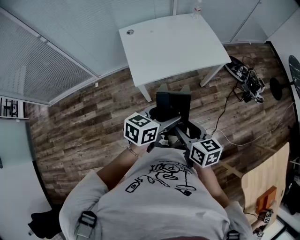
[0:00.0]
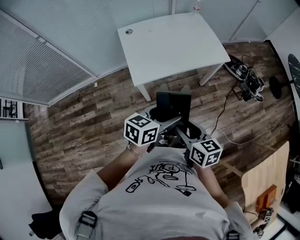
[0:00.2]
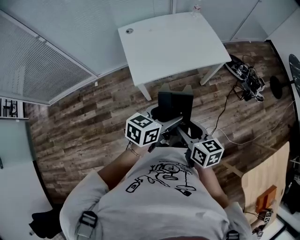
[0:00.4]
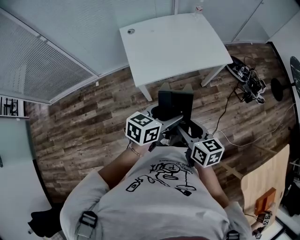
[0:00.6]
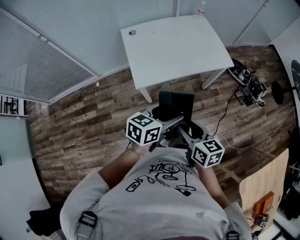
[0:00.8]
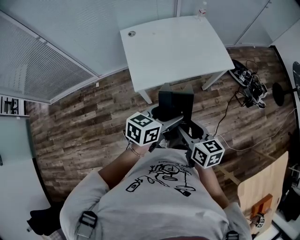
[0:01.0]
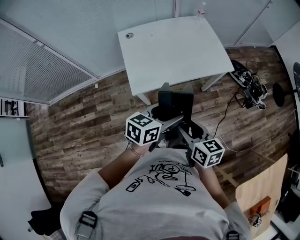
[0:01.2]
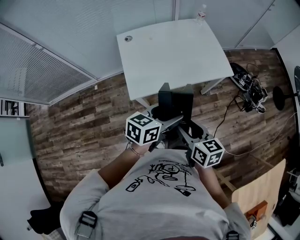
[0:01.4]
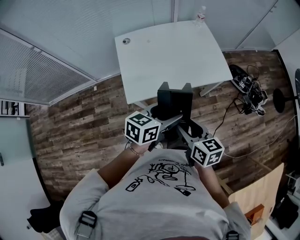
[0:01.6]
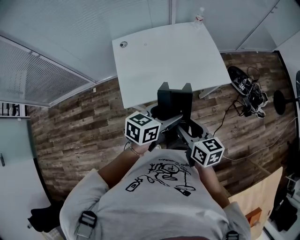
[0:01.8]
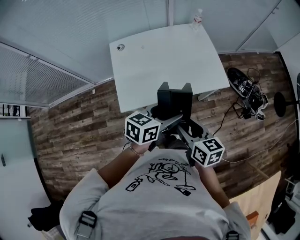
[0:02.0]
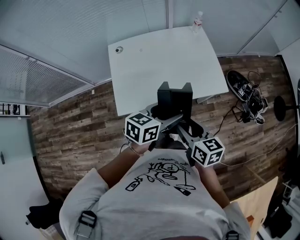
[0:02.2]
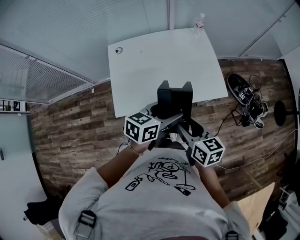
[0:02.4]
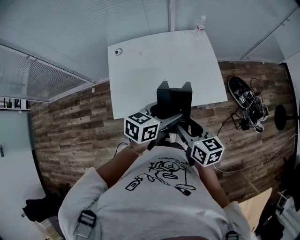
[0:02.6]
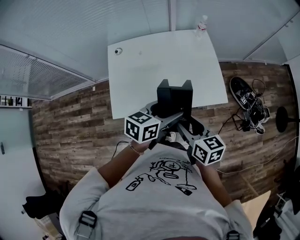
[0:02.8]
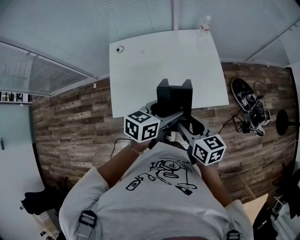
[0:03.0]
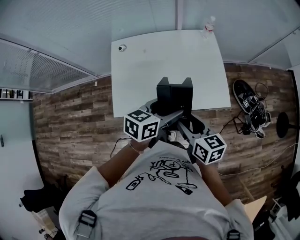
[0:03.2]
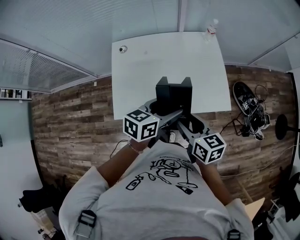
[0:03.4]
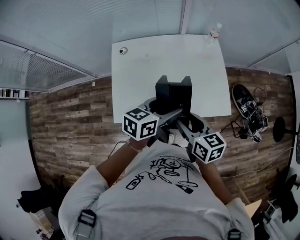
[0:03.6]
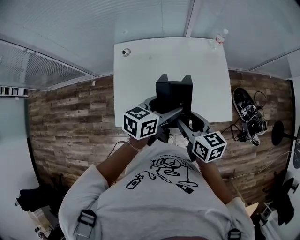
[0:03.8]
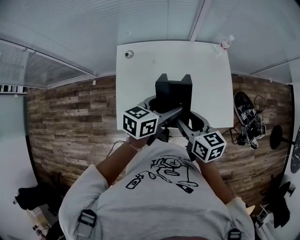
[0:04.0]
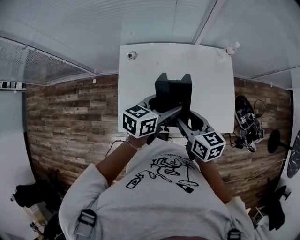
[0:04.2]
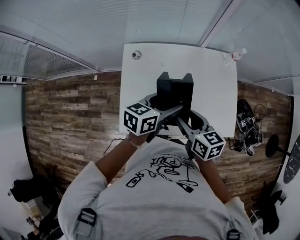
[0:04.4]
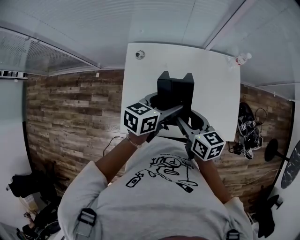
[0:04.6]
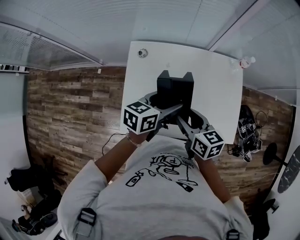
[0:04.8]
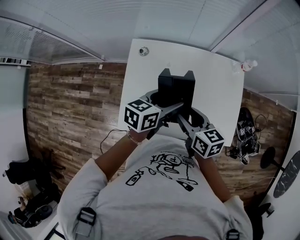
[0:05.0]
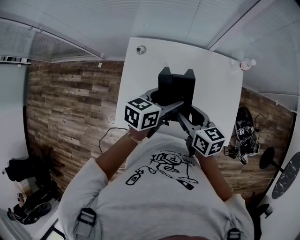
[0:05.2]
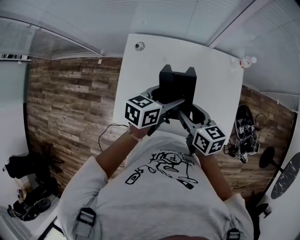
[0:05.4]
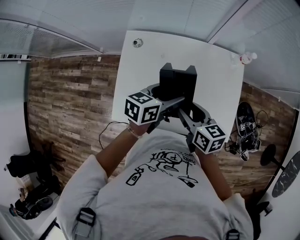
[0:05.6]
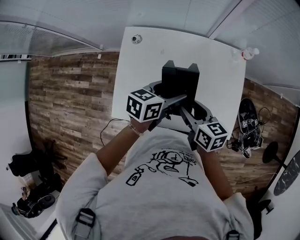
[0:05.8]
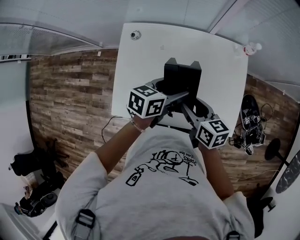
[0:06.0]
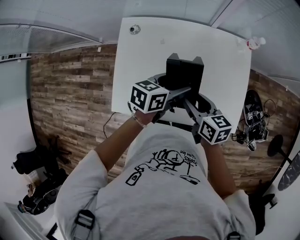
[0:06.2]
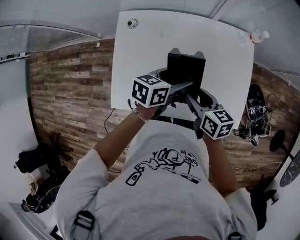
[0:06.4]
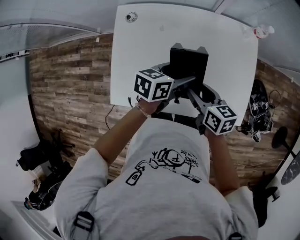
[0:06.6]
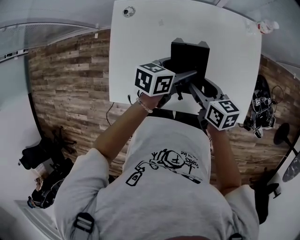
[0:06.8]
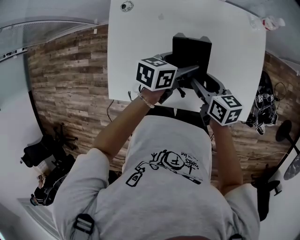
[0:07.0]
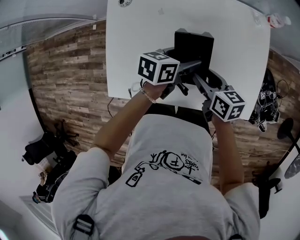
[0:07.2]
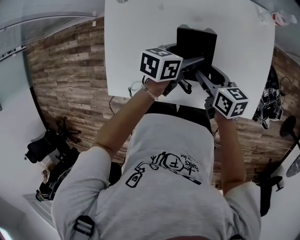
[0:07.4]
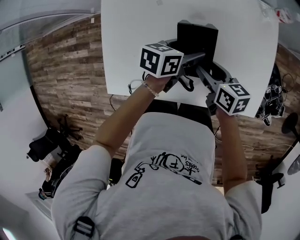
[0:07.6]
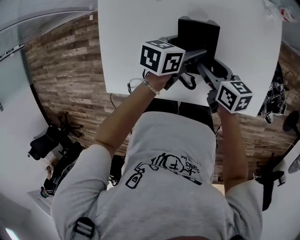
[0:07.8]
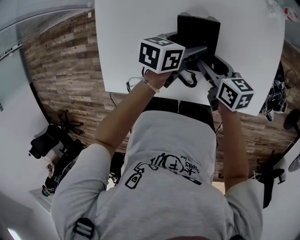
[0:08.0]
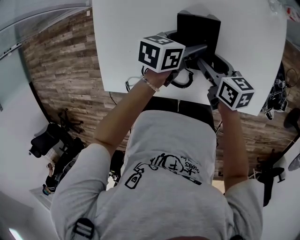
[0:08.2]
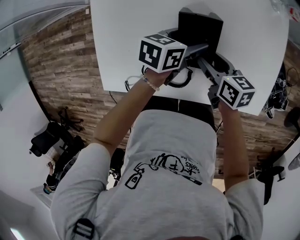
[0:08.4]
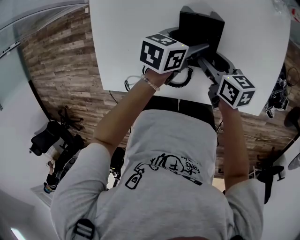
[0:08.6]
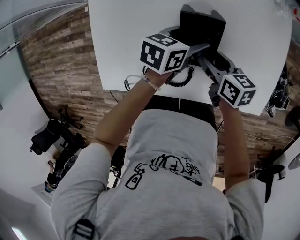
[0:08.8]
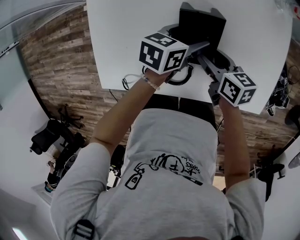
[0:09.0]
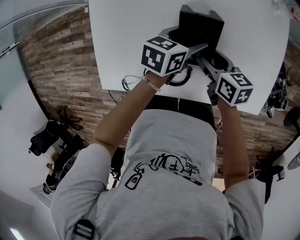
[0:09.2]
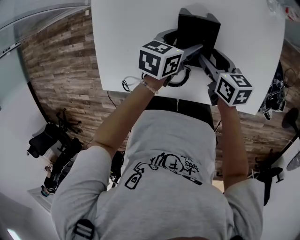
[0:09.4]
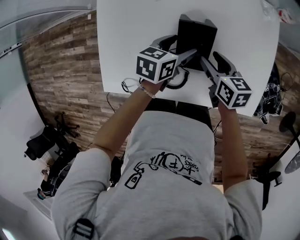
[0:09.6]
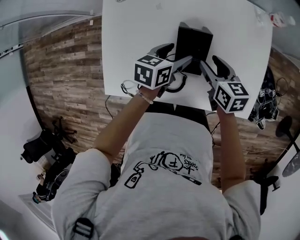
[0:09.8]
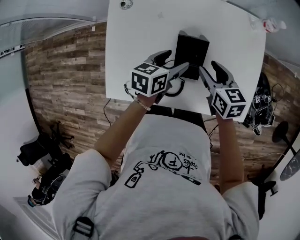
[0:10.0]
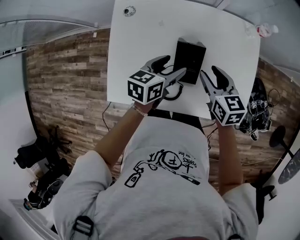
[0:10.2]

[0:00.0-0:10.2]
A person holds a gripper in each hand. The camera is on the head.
0.0 to 1.4 s: Both grippers move forward, approximately 15 cm.
1.4 to 3.0 s: Both grippers travel together forward and to the right, about 25 cm.
3.0 to 4.4 s: Both grippers move forward and to the left, some 25 cm.
4.4 to 5.8 s: The grippers both shift to the right by about 5 cm.
5.8 to 7.2 s: Both grippers move downward, about 15 cm.
7.2 to 8.8 s: Both grippers travel together downward, some 5 cm.
8.8 to 10.2 s: The left gripper goes about 15 cm upward and to the left. The right gripper is displaced upward by roughly 15 cm, and swivels about 30 degrees.

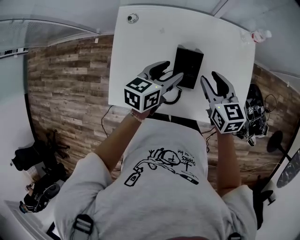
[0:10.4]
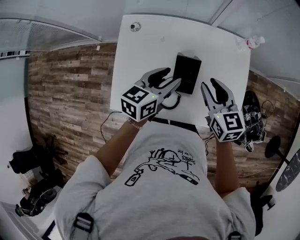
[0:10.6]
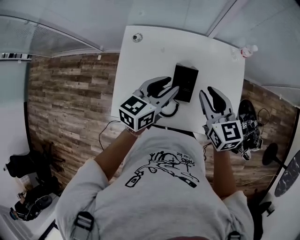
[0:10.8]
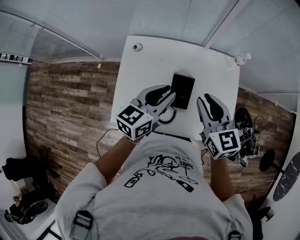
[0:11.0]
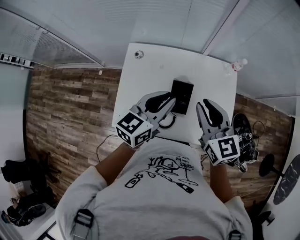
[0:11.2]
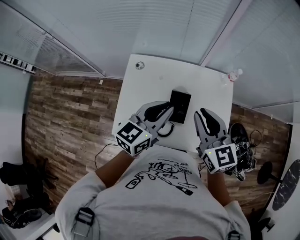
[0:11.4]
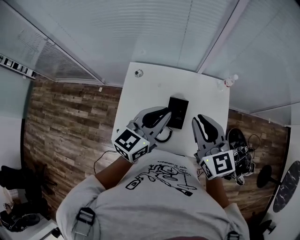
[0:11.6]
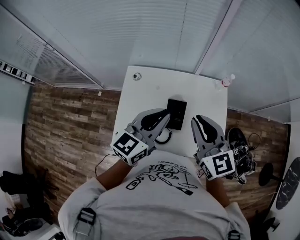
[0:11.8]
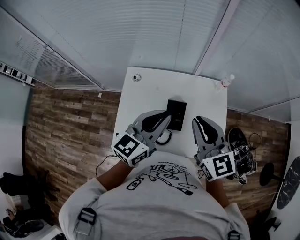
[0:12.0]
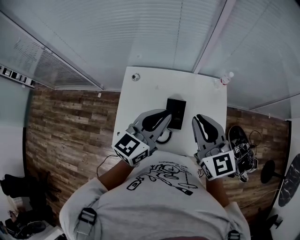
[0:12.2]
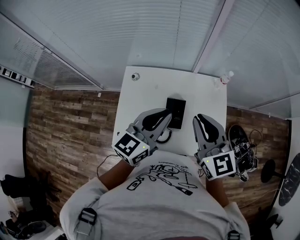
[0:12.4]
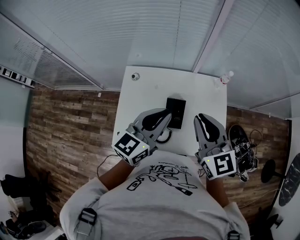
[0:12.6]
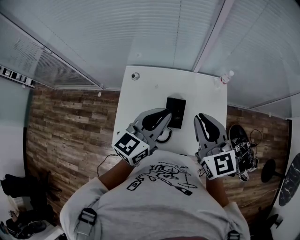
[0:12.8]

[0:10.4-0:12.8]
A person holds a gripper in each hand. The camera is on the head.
10.4 to 11.6 s: Both grippers travel together upward, roughly 25 cm. The right gripper swivels roughly 30 degrees, and closes its fingers; the left gripper rotates roughly 30 degrees, and closes up.
11.6 to 12.8 s: There are only small adjustments of the grippers.

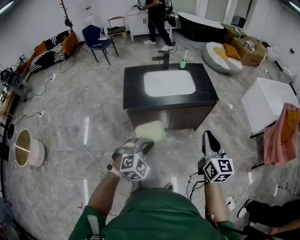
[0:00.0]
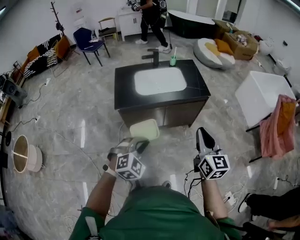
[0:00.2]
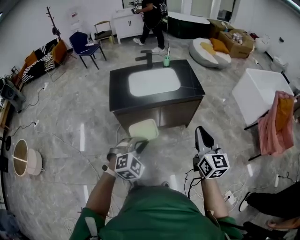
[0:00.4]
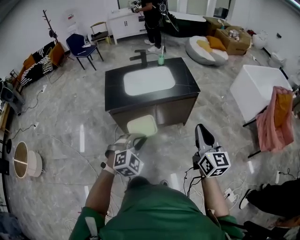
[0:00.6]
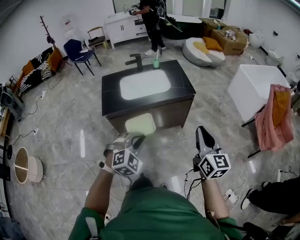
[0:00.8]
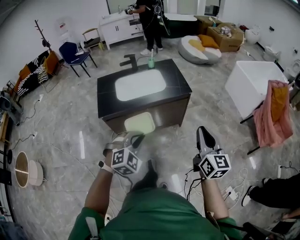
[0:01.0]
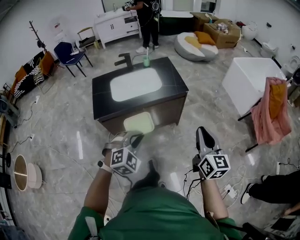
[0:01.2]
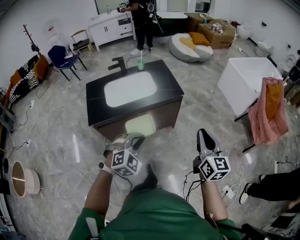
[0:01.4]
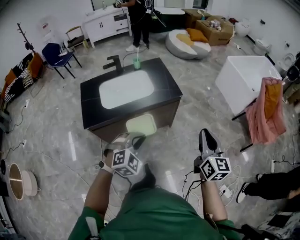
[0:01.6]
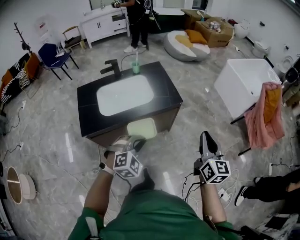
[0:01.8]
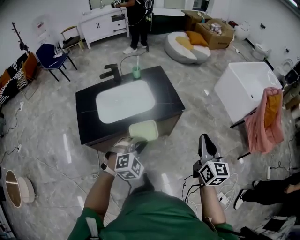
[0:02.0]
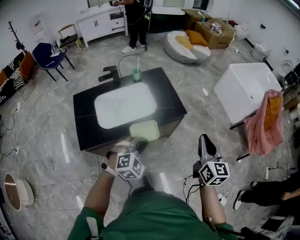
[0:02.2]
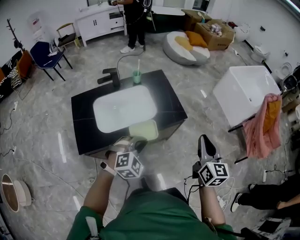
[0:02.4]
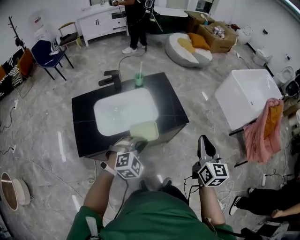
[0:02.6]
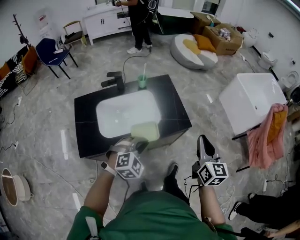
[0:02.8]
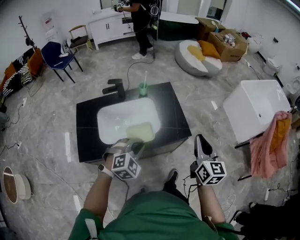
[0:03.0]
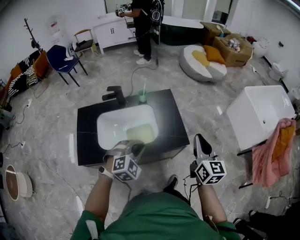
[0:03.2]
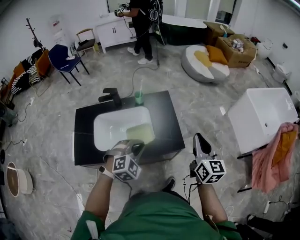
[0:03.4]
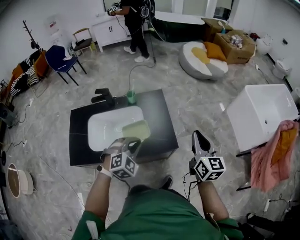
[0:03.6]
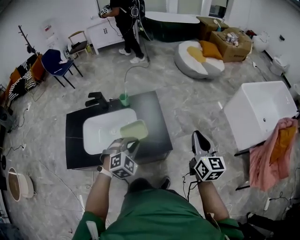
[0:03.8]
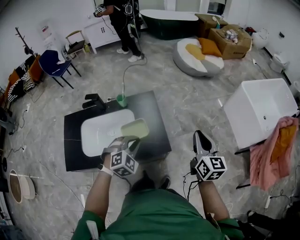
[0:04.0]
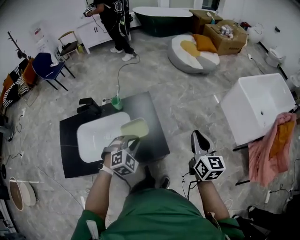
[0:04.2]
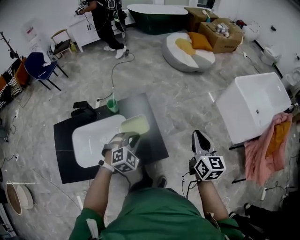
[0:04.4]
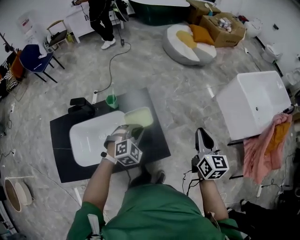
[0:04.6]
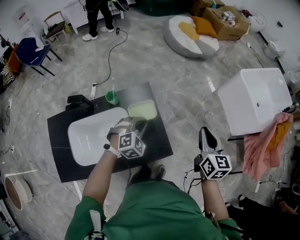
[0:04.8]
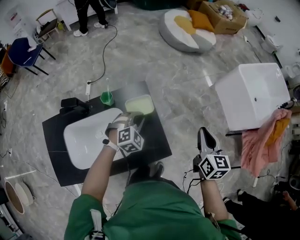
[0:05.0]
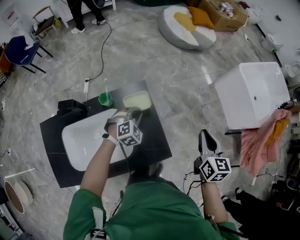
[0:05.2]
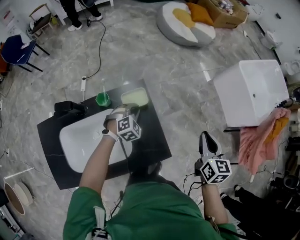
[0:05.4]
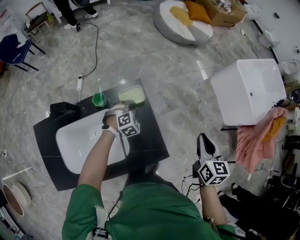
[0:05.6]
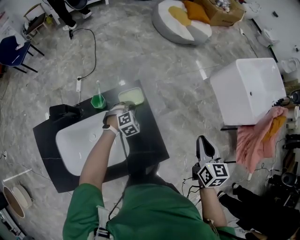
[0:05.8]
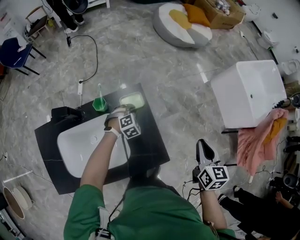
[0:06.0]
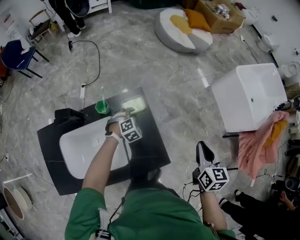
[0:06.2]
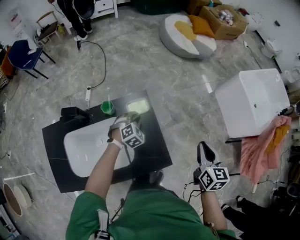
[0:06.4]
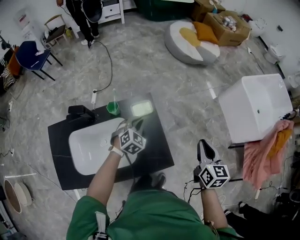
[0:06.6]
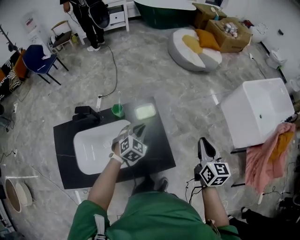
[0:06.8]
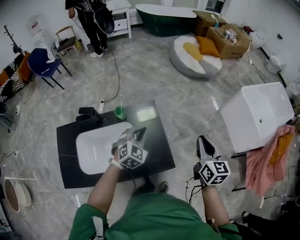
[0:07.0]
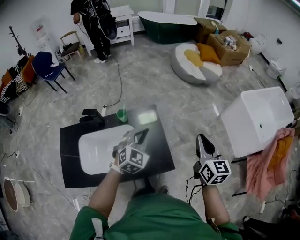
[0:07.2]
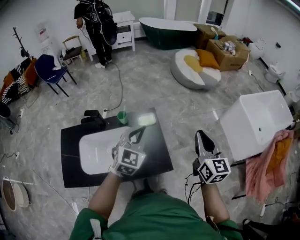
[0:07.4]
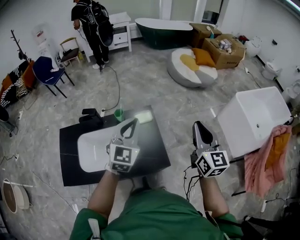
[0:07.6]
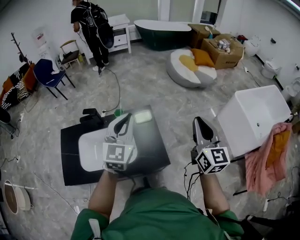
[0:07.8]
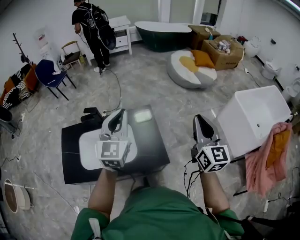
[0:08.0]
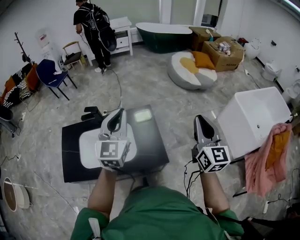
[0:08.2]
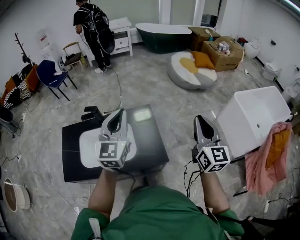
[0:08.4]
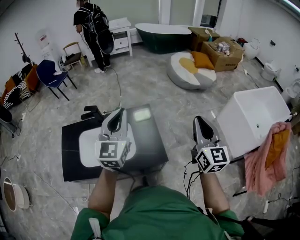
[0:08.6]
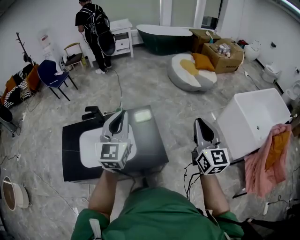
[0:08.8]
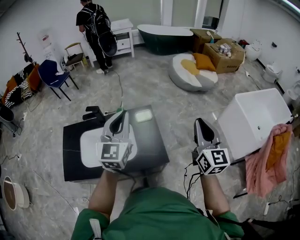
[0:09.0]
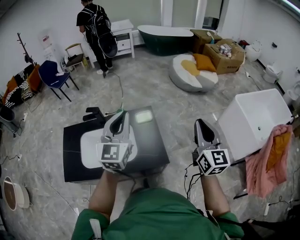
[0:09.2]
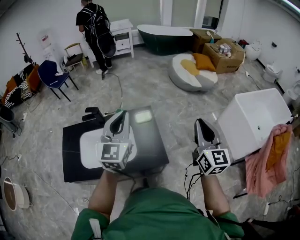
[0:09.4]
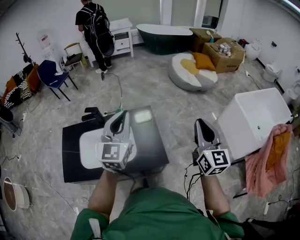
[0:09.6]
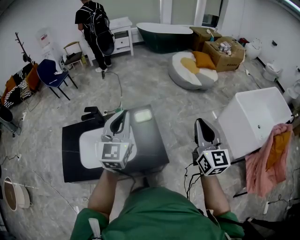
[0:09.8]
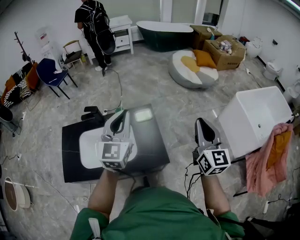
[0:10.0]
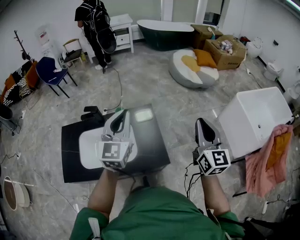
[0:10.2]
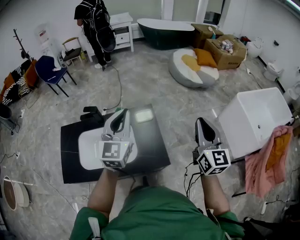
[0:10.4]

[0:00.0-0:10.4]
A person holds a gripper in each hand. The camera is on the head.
0.0 to 1.4 s: The right gripper shifts about 20 cm to the right. Meanwhile the left gripper moves to the right and forward, some 20 cm.
1.4 to 3.0 s: The grippers both shift forward by about 35 cm.
3.0 to 4.4 s: Both grippers move forward and to the right, approximately 30 cm.
4.4 to 6.0 s: The left gripper shifts about 35 cm forward and downward. The right gripper travels downward and forward by about 15 cm.
6.0 to 7.4 s: The left gripper is displaced upward and backward by some 40 cm, and tips its fingers upward by about 40 degrees. The right gripper moves upward, approximately 20 cm, and rotates some 30 degrees.
7.4 to 9.0 s: The right gripper moves backward and upward, some 10 cm. Meanwhile the left gripper is displaced upward and backward by some 15 cm, and turns by some 30 degrees.
9.0 to 10.4 s: The right gripper shifts by roughly 5 cm, while the left gripper is displaced forward by about 5 cm.

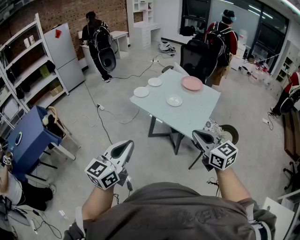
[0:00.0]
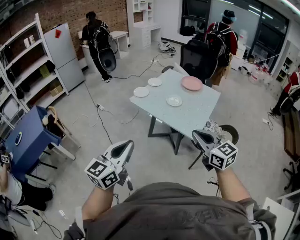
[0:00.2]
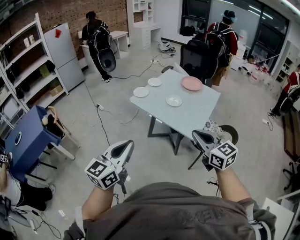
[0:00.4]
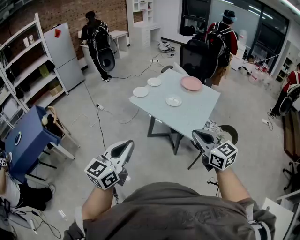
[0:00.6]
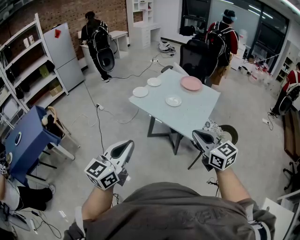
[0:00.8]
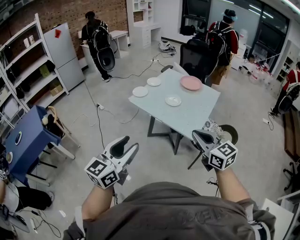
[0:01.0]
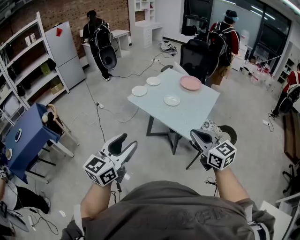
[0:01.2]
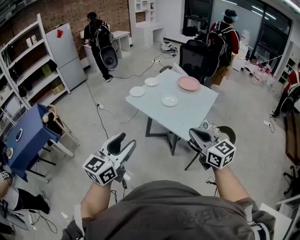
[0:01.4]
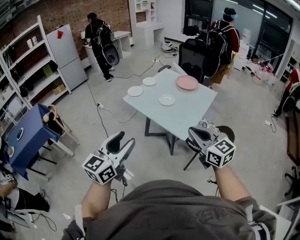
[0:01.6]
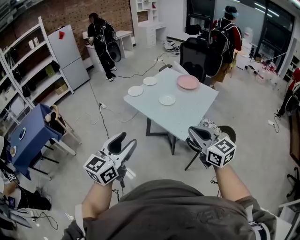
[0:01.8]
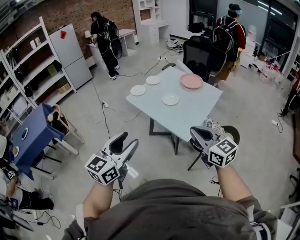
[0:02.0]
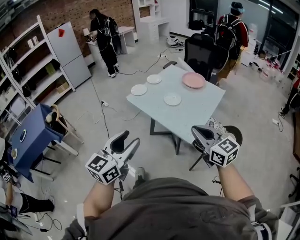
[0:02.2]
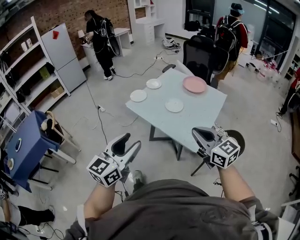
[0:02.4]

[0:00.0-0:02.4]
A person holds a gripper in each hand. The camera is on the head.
0.0 to 1.2 s: The left gripper opens up.
1.2 to 2.4 s: Both grippers move forward, some 15 cm.
